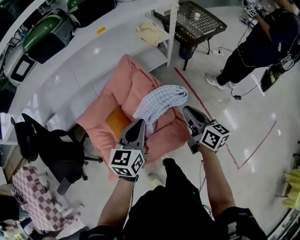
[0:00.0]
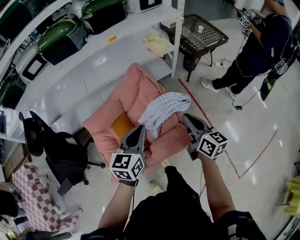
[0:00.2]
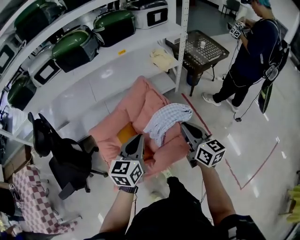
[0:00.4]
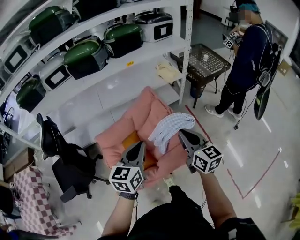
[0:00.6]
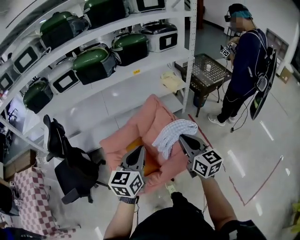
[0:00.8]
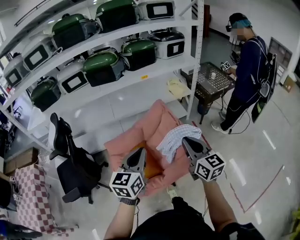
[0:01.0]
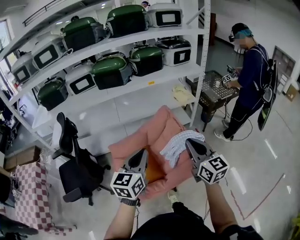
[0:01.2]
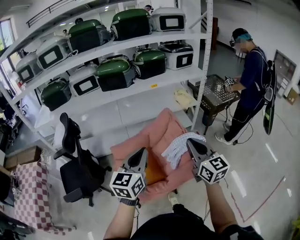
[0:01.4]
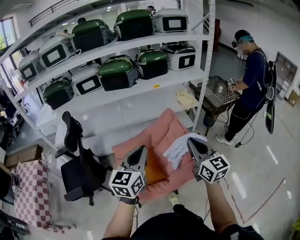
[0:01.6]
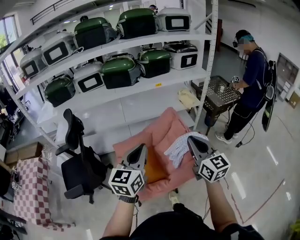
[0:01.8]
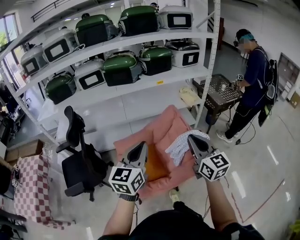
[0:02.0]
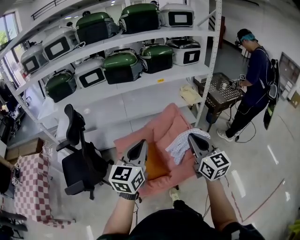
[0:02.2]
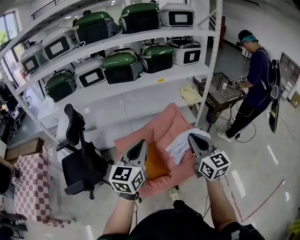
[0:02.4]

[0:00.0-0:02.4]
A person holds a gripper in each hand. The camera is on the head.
0:00.0 to 0:01.2: The two grippers go about 25 cm upward, to the left and backward. The right gripper swivels about 30 degrees.
0:01.2 to 0:02.4: The left gripper changes place by roughly 5 cm.

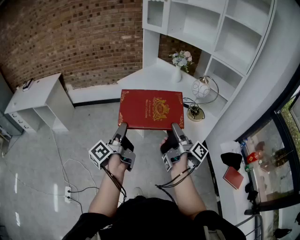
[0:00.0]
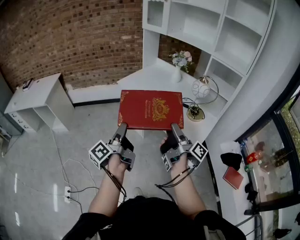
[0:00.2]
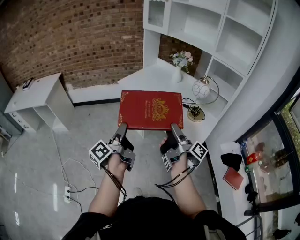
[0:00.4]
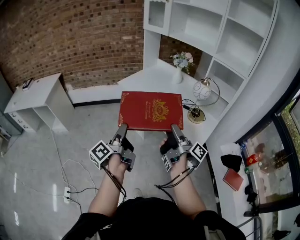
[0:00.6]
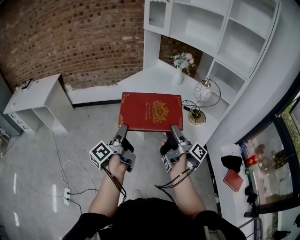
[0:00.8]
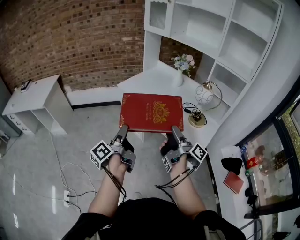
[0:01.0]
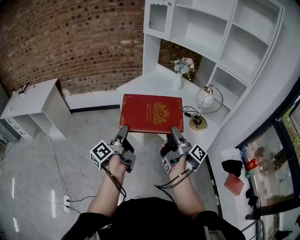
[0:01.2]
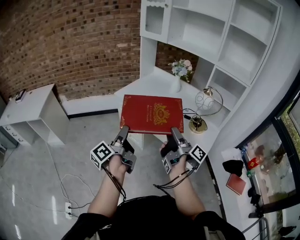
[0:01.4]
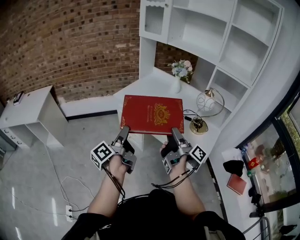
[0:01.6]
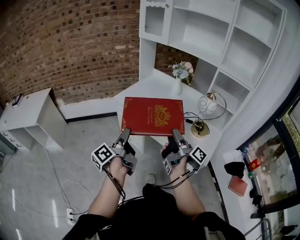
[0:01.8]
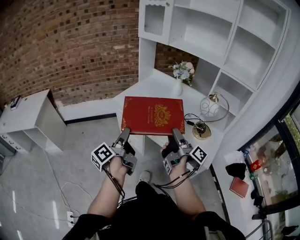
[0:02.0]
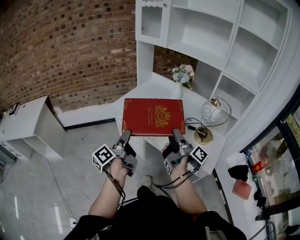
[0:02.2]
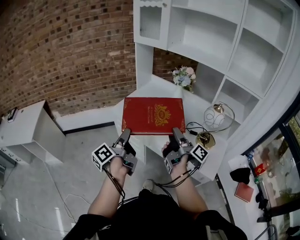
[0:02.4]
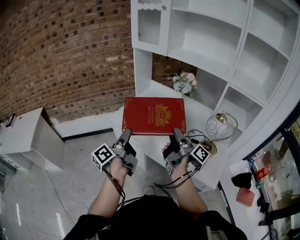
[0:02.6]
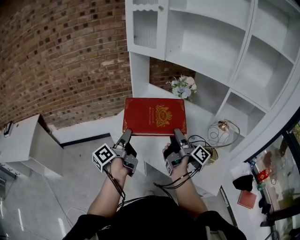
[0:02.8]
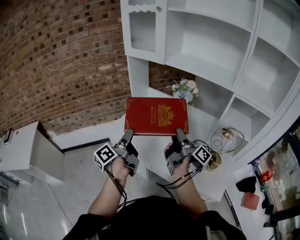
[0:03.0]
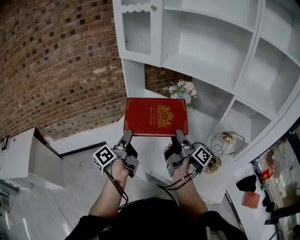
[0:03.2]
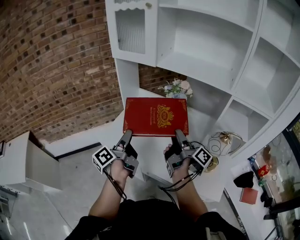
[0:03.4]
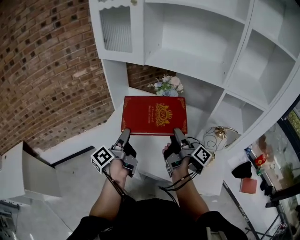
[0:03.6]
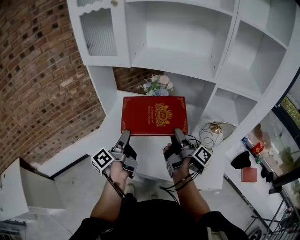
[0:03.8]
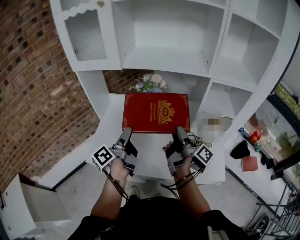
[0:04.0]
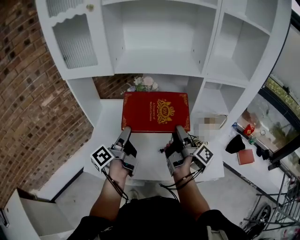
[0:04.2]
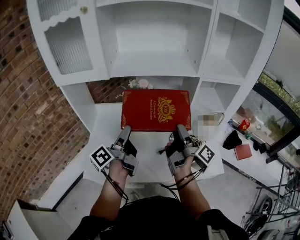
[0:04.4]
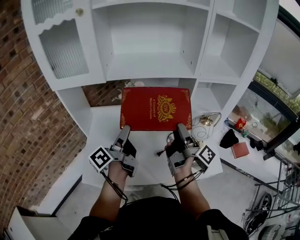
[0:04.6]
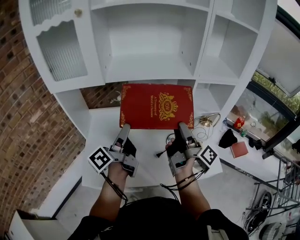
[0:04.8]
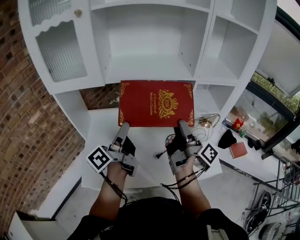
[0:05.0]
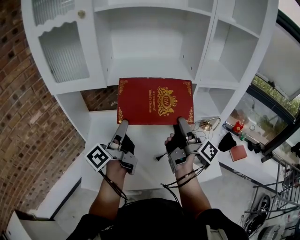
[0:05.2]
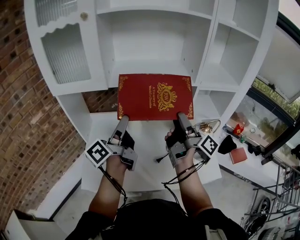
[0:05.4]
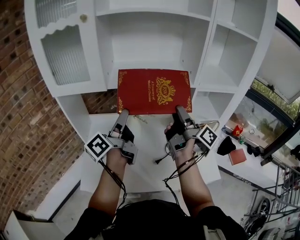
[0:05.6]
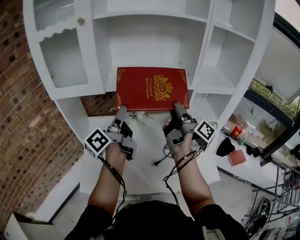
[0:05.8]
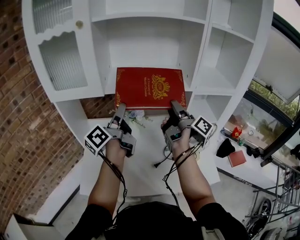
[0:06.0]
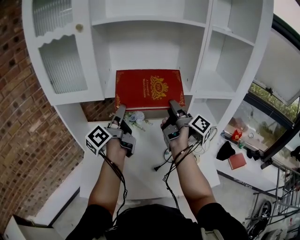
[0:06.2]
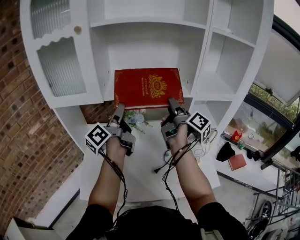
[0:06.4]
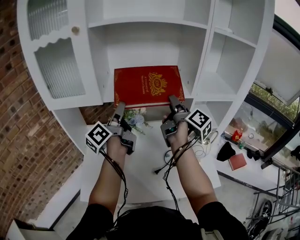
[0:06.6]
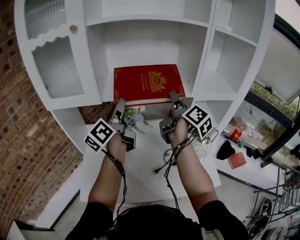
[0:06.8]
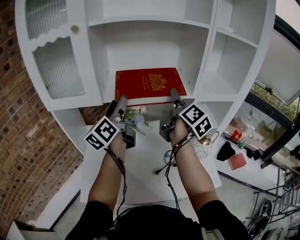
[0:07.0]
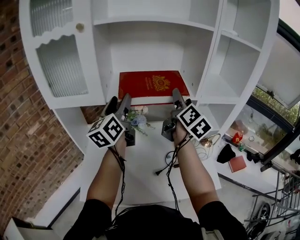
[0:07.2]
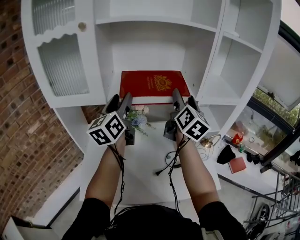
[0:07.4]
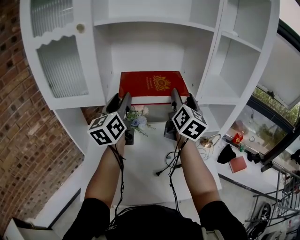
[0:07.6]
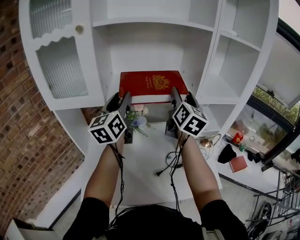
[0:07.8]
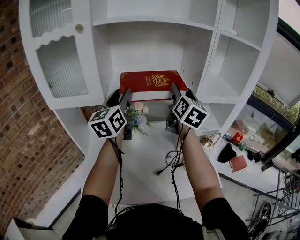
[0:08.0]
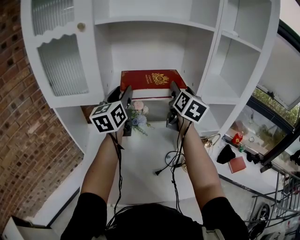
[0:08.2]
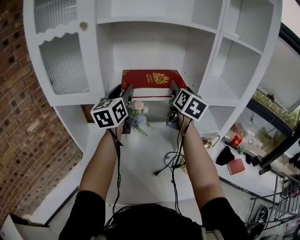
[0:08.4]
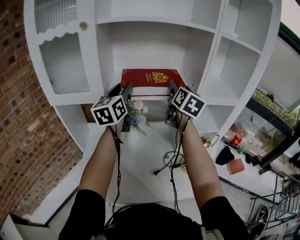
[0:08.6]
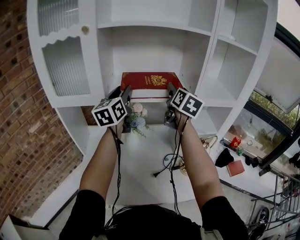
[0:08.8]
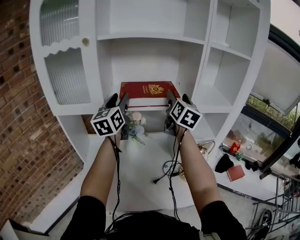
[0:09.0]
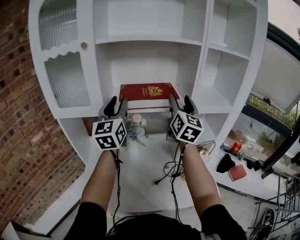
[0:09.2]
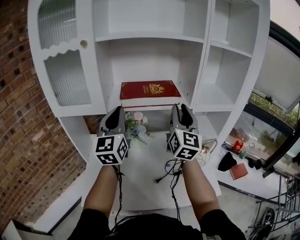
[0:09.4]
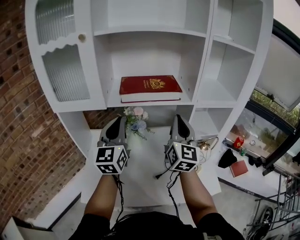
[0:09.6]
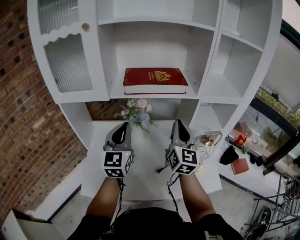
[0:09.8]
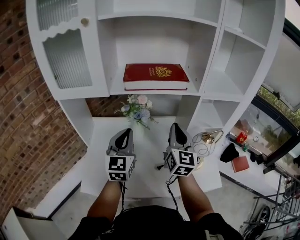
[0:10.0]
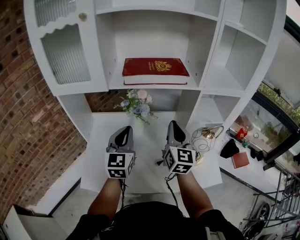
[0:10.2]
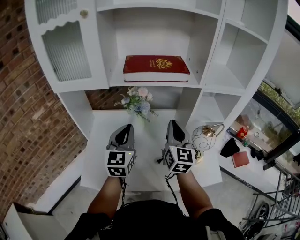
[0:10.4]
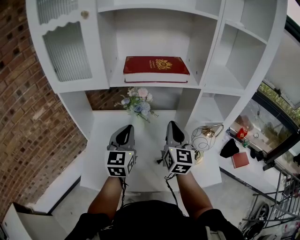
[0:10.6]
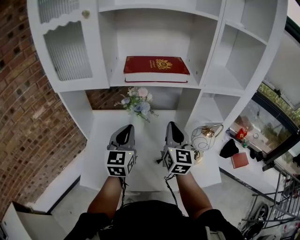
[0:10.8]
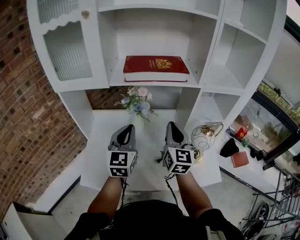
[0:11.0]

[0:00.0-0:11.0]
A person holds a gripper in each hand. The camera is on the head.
0:00.0 to 0:01.6: Both grippers move forward, some 15 cm.
0:01.6 to 0:03.2: Both grippers travel together forward, some 40 cm.
0:03.2 to 0:04.8: The left gripper ends up approximately 20 cm from where it was, and changes its angle by approximately 40 degrees. Meanwhile the right gripper shifts by about 10 cm, and swivels roughly 40 degrees.
0:04.8 to 0:06.2: Both grippers move forward and upward, approximately 15 cm.
0:06.2 to 0:07.8: Both grippers travel together upward and forward, about 10 cm. The right gripper twists roughly 60 degrees counterclockwise, seen from behind; the left gripper twists roughly 50 degrees clockwise, seen from behind.
0:07.8 to 0:09.4: Both grippers move backward, some 5 cm. The left gripper turns by some 20 degrees, and closes. The right gripper closes its fingers.
0:09.4 to 0:11.0: Both grippers move downward, approximately 15 cm.

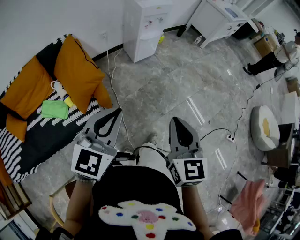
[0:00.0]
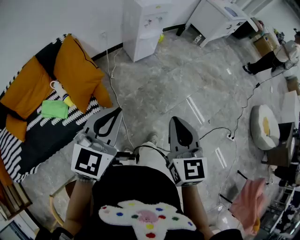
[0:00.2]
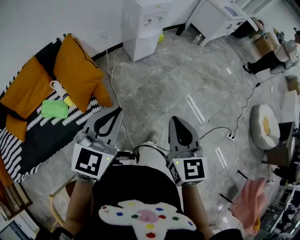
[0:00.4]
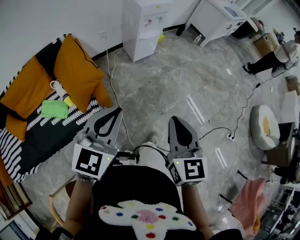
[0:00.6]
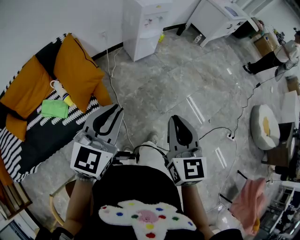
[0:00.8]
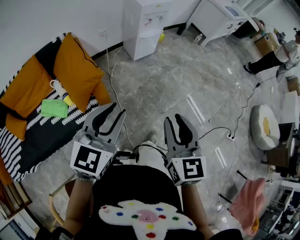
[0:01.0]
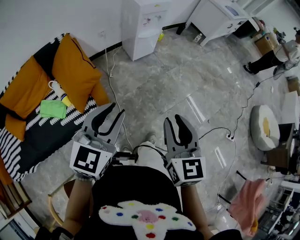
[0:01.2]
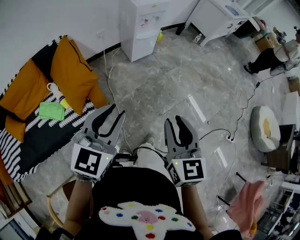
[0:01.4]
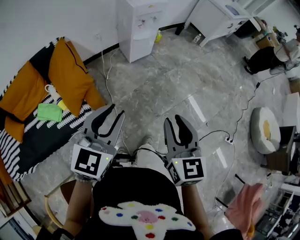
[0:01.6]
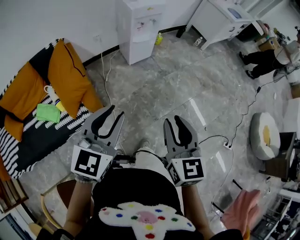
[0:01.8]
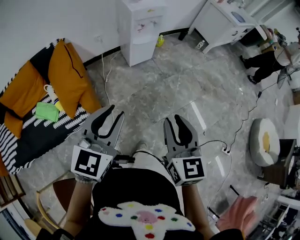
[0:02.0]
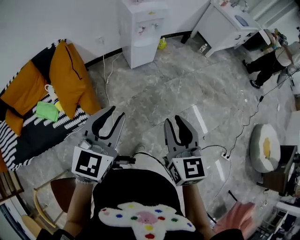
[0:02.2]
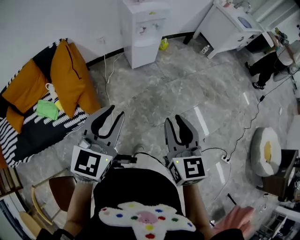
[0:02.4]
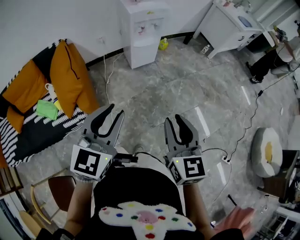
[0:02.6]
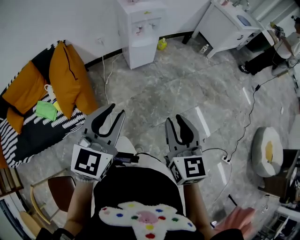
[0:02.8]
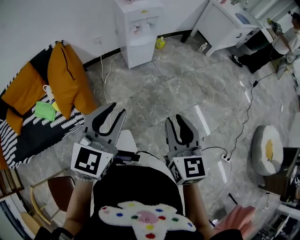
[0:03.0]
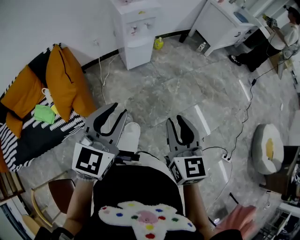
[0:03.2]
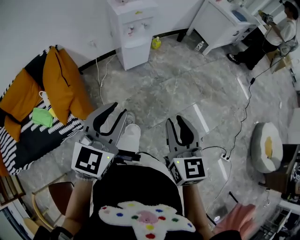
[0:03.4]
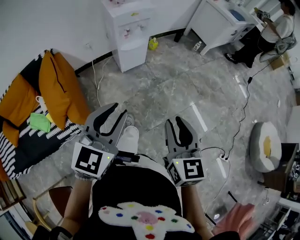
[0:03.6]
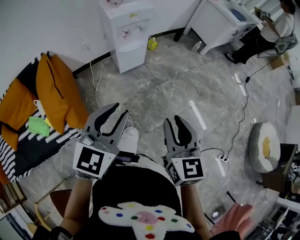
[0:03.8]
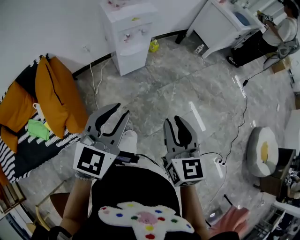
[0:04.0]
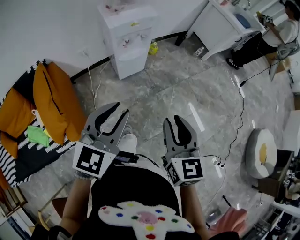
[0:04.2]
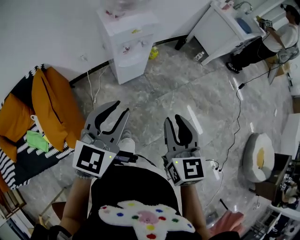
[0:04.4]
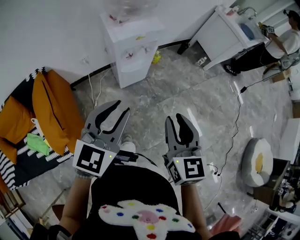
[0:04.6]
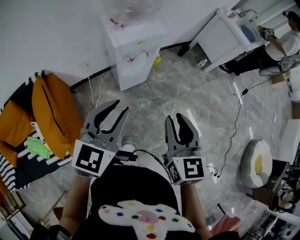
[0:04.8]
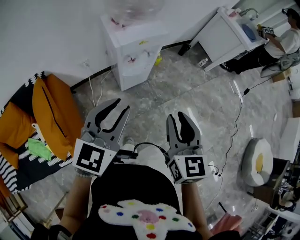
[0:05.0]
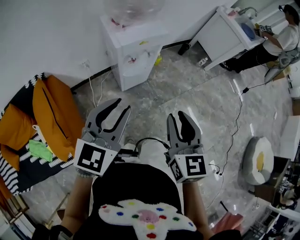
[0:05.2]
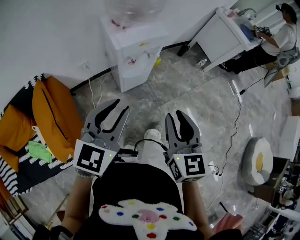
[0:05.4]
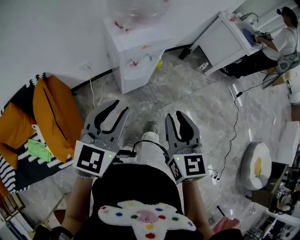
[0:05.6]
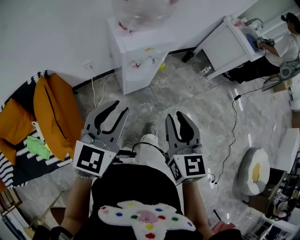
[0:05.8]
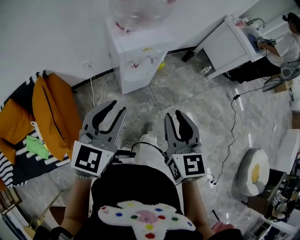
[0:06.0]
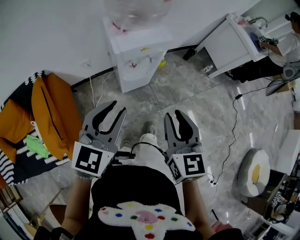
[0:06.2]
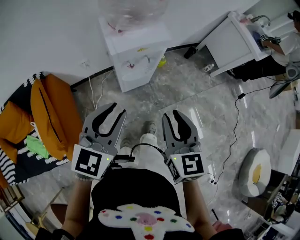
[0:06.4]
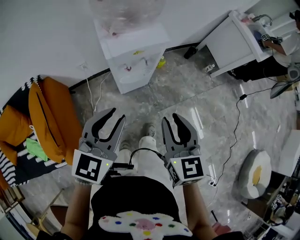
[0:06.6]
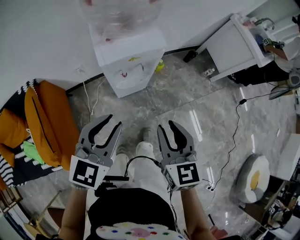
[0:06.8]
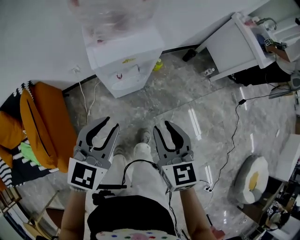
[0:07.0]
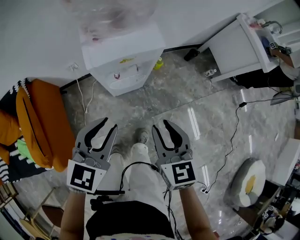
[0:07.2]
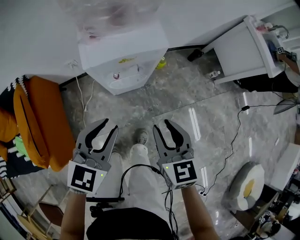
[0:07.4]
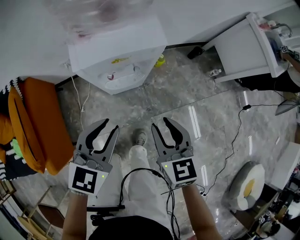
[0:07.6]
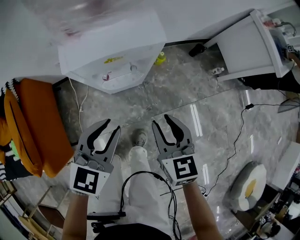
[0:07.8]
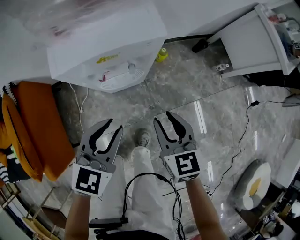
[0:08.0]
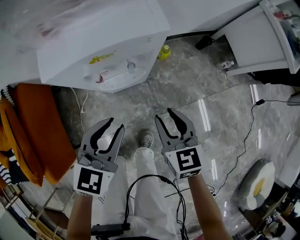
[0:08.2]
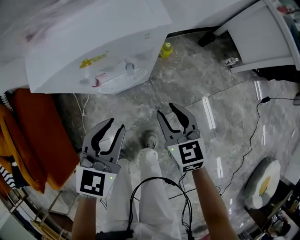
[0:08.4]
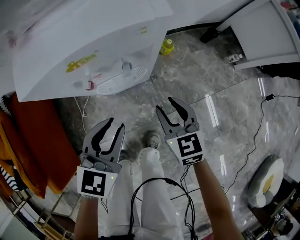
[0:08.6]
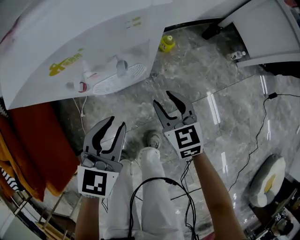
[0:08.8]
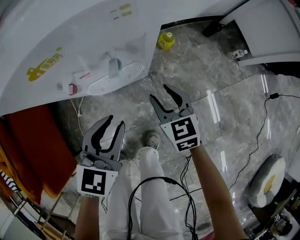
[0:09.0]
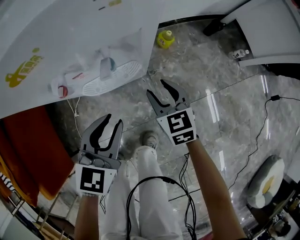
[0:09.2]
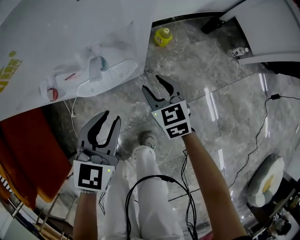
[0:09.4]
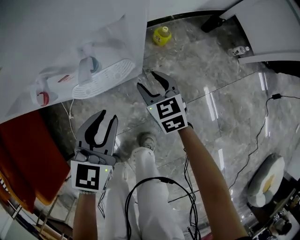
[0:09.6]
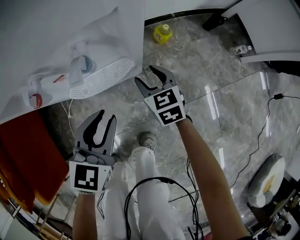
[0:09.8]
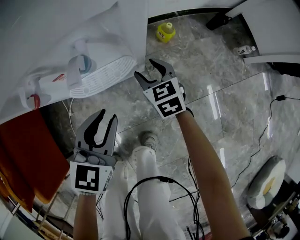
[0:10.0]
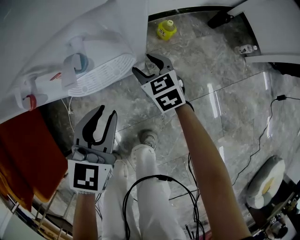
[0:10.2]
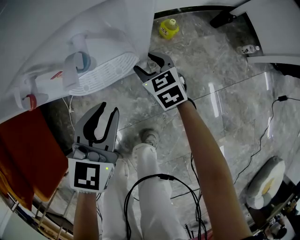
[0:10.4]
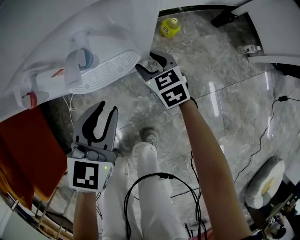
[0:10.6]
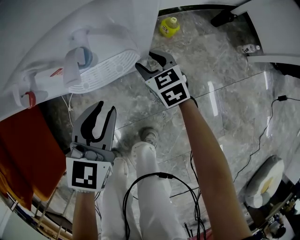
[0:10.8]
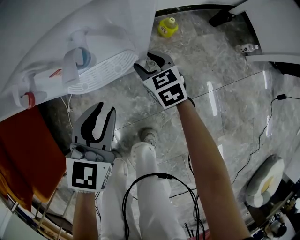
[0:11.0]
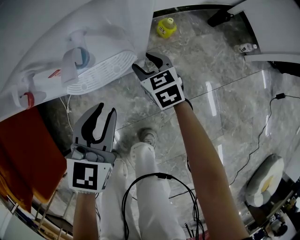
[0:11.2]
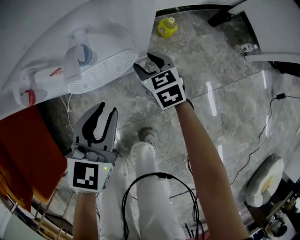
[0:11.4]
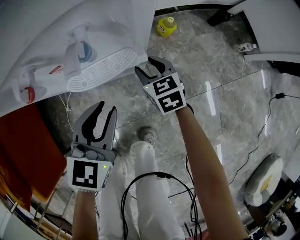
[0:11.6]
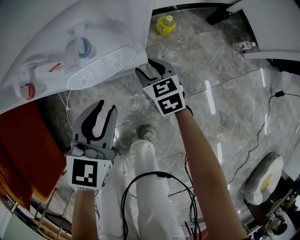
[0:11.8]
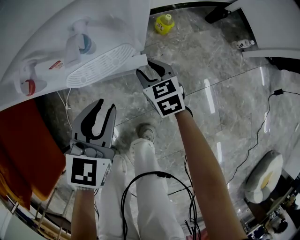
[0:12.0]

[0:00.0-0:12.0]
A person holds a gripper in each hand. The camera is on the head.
0:00.0 to 0:01.6: The right gripper shifts approximately 10 cm forward and to the right, and opens up; the left gripper heads to the right and forward, covering approximately 5 cm.
0:01.6 to 0:03.0: Both grippers travel together to the right and forward, some 15 cm.
0:03.0 to 0:04.4: The two grippers go some 25 cm forward.
0:04.4 to 0:06.0: Both grippers move forward and to the left, approximately 15 cm.
0:06.0 to 0:07.6: The right gripper heads downward and forward, covering some 25 cm; the left gripper moves downward, forward and to the right, about 20 cm.
0:07.6 to 0:09.0: The right gripper goes roughly 30 cm downward and forward, while the left gripper moves downward, about 20 cm.
0:09.0 to 0:10.4: The right gripper moves downward and forward, some 15 cm. The left gripper goes approximately 10 cm downward.
0:10.4 to 0:12.0: The right gripper ends up some 5 cm from where it was.
